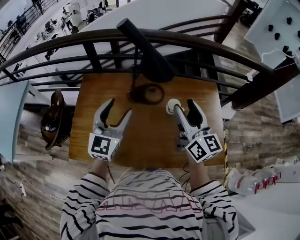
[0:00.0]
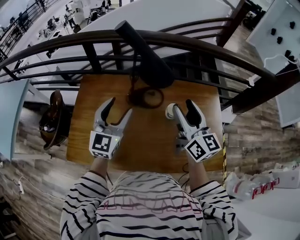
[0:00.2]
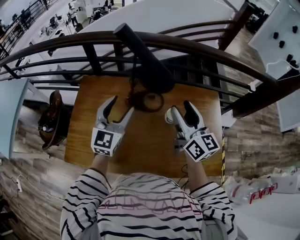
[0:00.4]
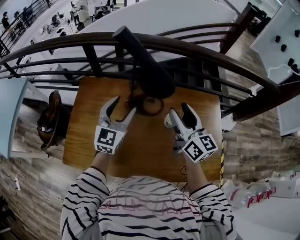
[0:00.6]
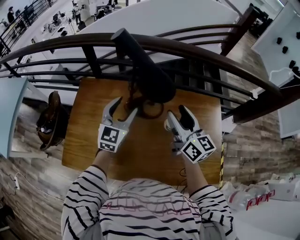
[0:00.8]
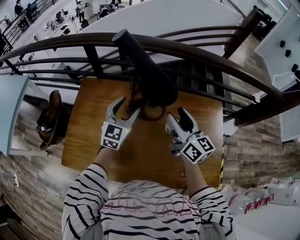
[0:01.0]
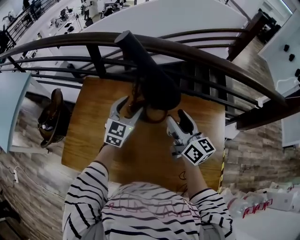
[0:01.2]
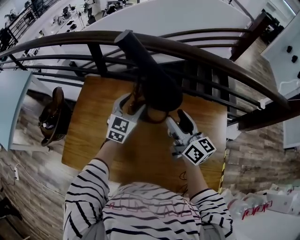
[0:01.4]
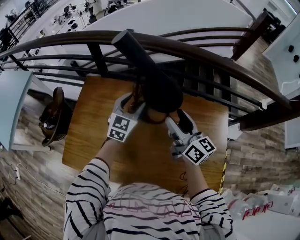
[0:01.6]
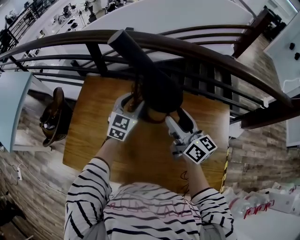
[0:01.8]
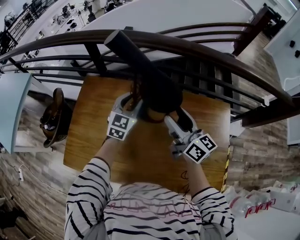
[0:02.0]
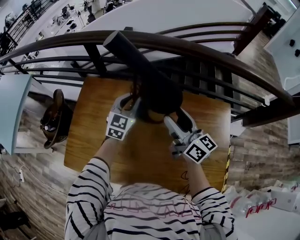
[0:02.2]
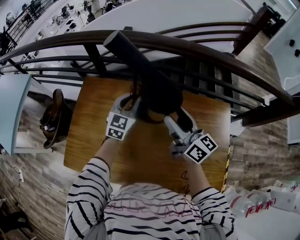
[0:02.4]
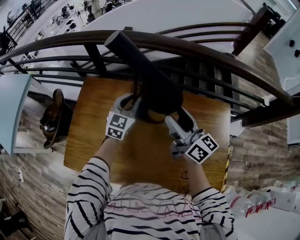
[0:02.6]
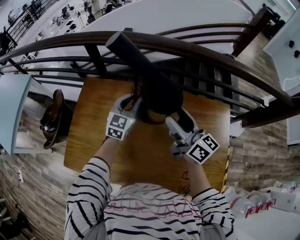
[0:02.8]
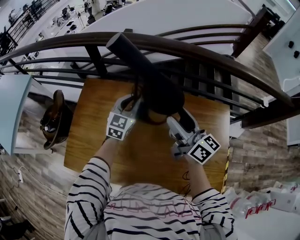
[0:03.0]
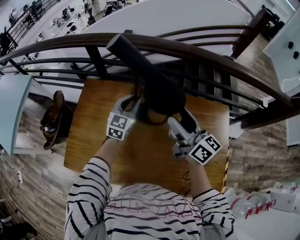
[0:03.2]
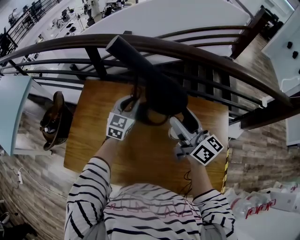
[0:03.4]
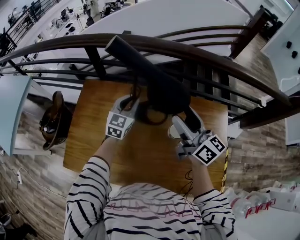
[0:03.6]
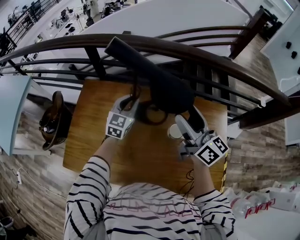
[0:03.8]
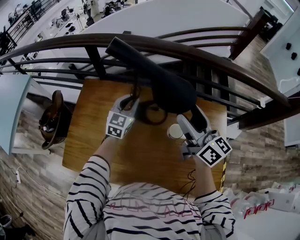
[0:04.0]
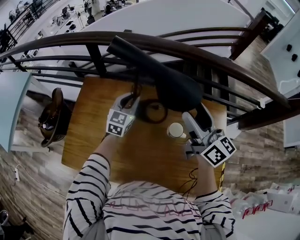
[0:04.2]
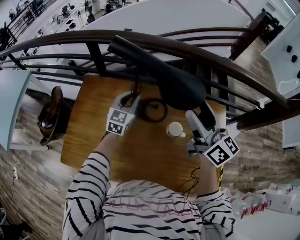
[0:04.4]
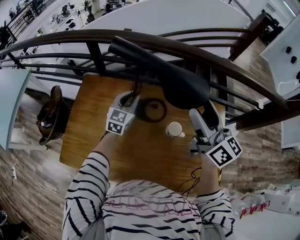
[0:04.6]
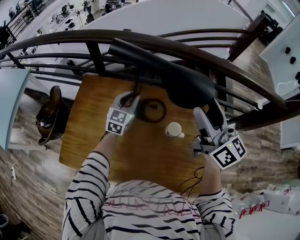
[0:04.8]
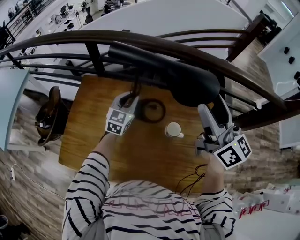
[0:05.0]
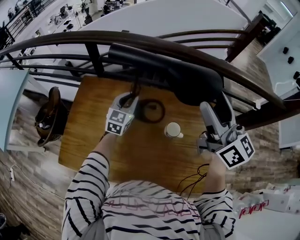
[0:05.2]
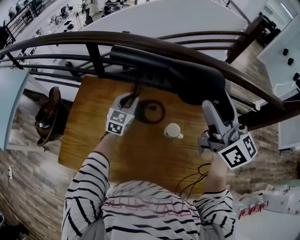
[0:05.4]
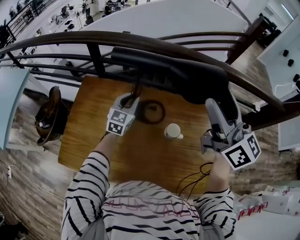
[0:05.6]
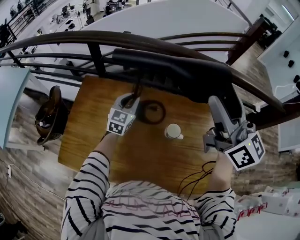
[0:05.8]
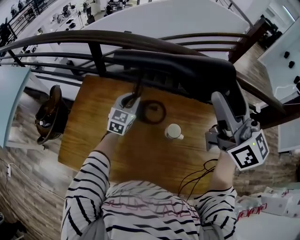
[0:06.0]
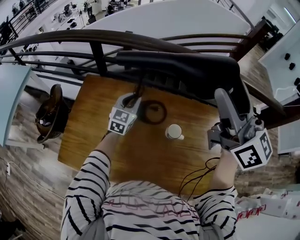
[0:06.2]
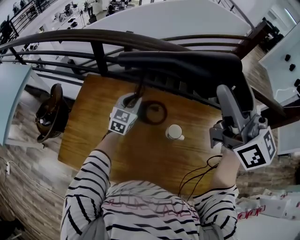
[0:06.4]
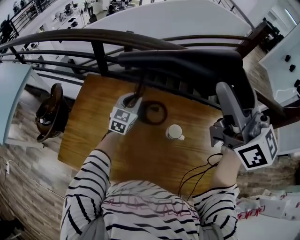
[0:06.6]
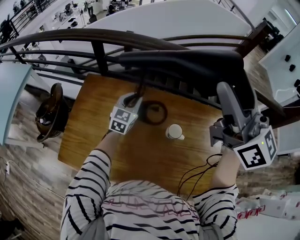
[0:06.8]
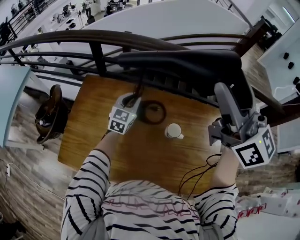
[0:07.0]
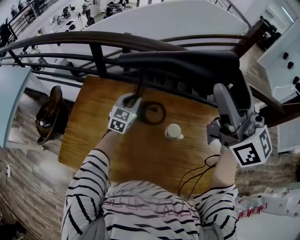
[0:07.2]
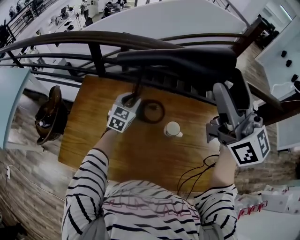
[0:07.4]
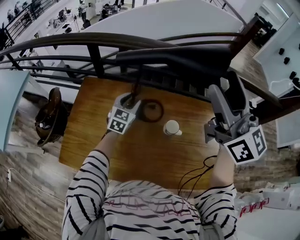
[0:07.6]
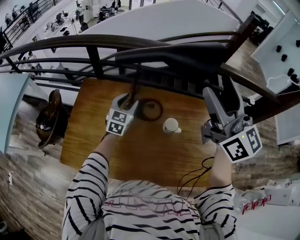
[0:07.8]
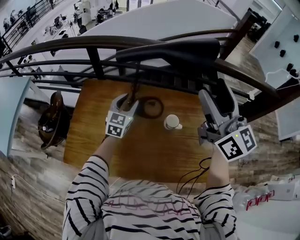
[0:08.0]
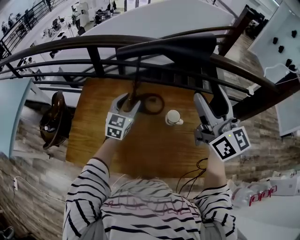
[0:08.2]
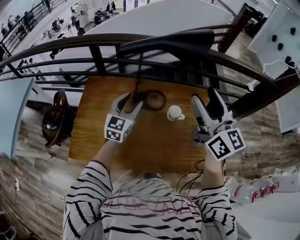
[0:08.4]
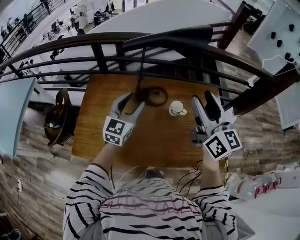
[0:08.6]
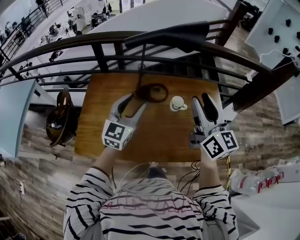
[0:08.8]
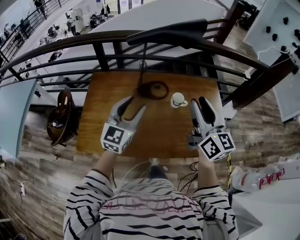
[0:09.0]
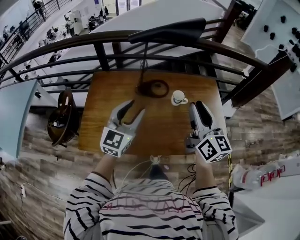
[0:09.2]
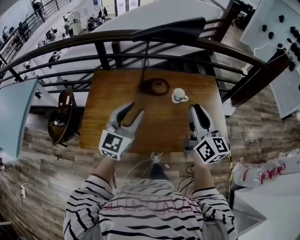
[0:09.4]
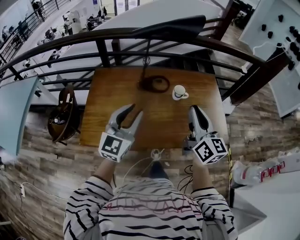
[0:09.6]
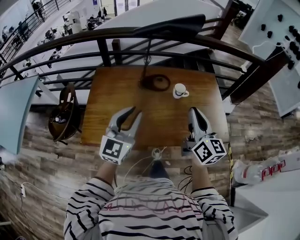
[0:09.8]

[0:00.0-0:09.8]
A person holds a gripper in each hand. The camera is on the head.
0:00.0 to 0:01.4: The grippers both shift forward and downward by roughly 20 cm. The right gripper changes its angle by some 20 degrees.
0:01.4 to 0:02.8: The left gripper closes its fingers.
0:02.8 to 0:04.2: The right gripper heads upward, covering some 5 cm.
0:04.2 to 0:05.6: The right gripper heads upward, covering about 15 cm.
0:05.6 to 0:07.0: The right gripper shifts approximately 10 cm upward.
0:07.0 to 0:08.4: The right gripper is displaced backward and downward by some 15 cm; the left gripper shifts some 20 cm backward and upward, and opens its fingers.
0:08.4 to 0:09.8: The left gripper travels backward by approximately 30 cm, and closes up. The right gripper shifts about 25 cm backward and downward, and closes.

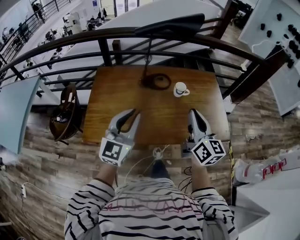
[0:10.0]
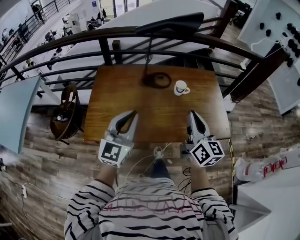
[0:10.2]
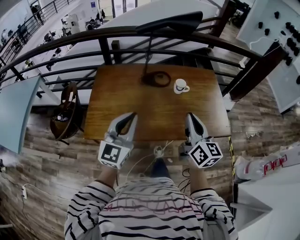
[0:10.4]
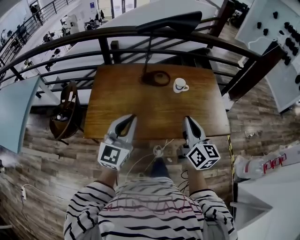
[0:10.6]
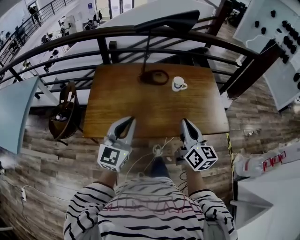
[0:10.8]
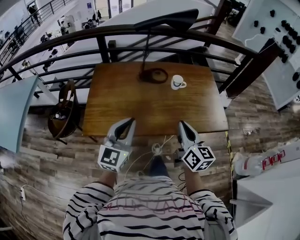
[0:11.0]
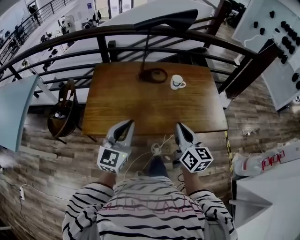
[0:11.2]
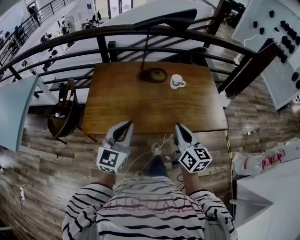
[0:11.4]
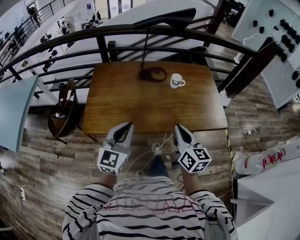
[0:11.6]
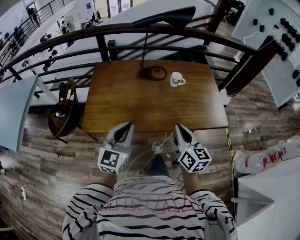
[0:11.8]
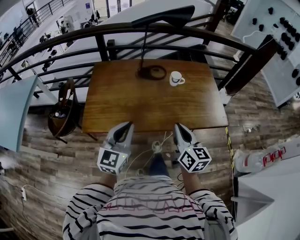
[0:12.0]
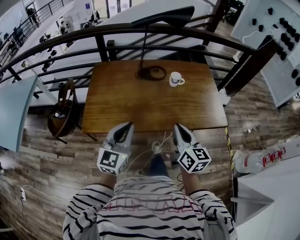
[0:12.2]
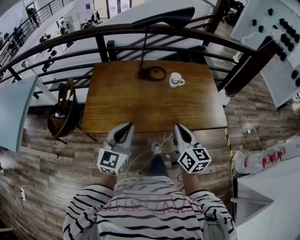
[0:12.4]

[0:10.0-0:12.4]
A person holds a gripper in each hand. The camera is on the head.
0:10.0 to 0:11.2: The left gripper shifts roughly 10 cm backward; the right gripper heads backward and downward, covering approximately 15 cm.
0:11.2 to 0:12.4: The grippers make only small movements.

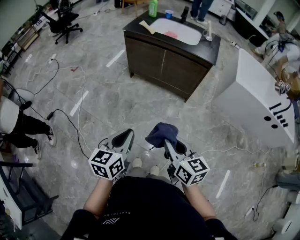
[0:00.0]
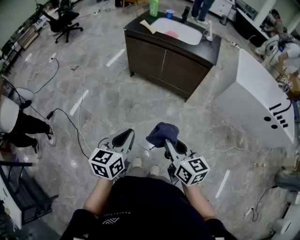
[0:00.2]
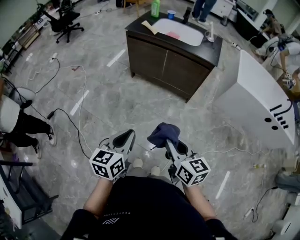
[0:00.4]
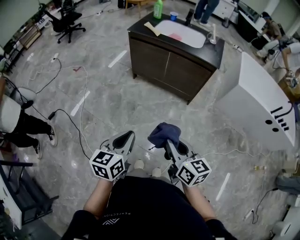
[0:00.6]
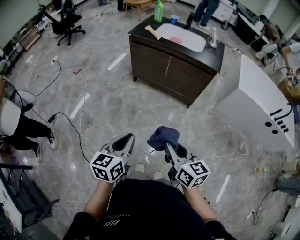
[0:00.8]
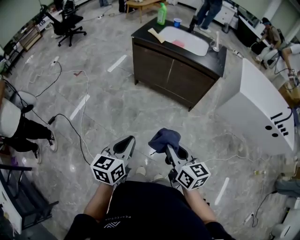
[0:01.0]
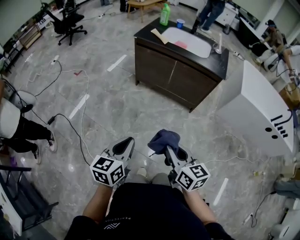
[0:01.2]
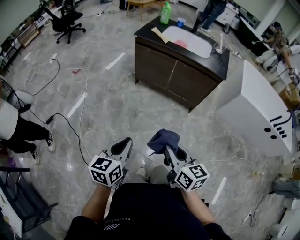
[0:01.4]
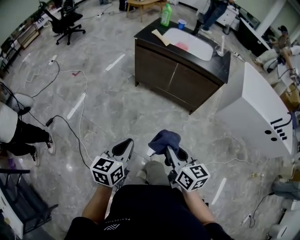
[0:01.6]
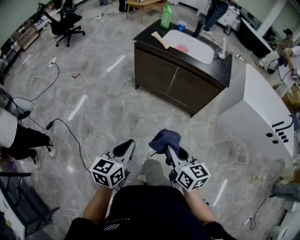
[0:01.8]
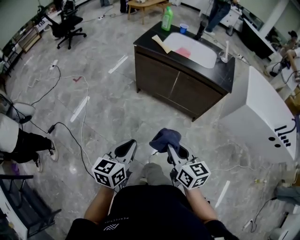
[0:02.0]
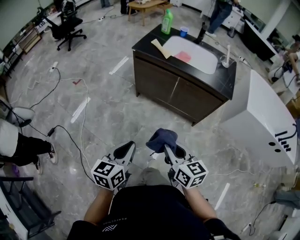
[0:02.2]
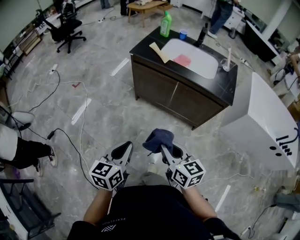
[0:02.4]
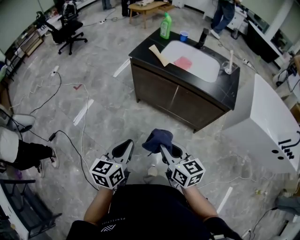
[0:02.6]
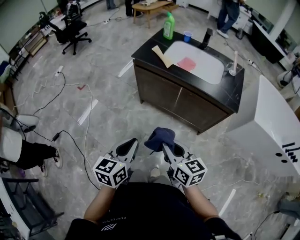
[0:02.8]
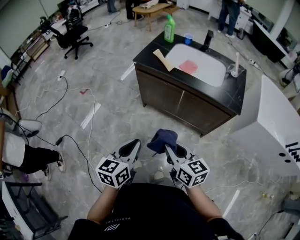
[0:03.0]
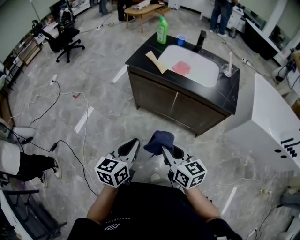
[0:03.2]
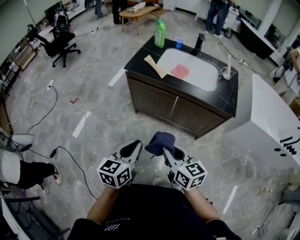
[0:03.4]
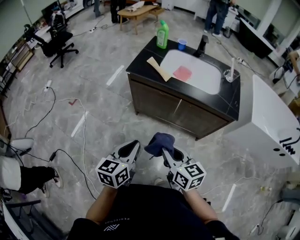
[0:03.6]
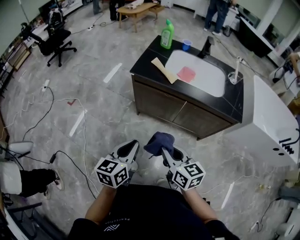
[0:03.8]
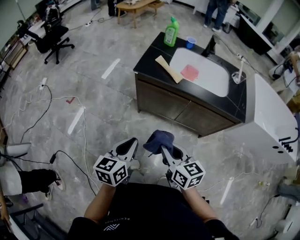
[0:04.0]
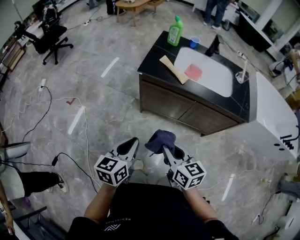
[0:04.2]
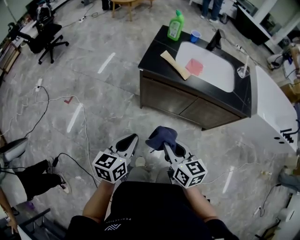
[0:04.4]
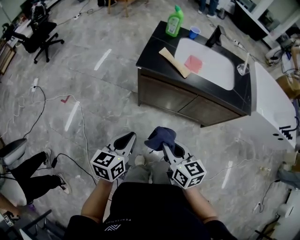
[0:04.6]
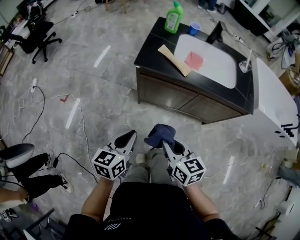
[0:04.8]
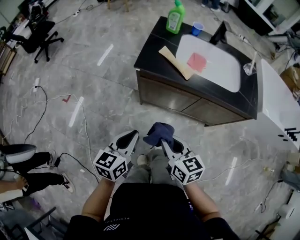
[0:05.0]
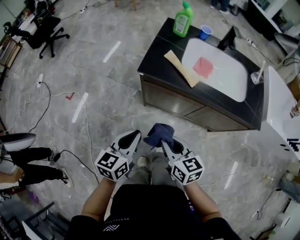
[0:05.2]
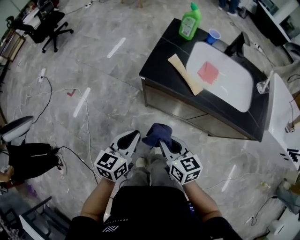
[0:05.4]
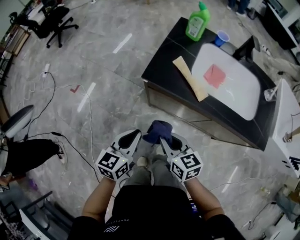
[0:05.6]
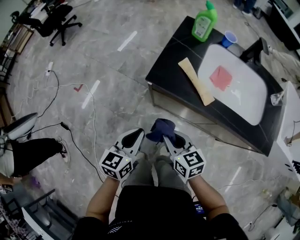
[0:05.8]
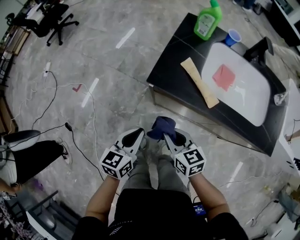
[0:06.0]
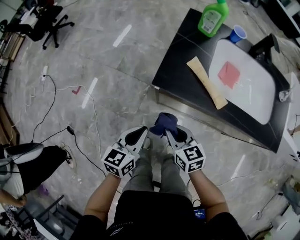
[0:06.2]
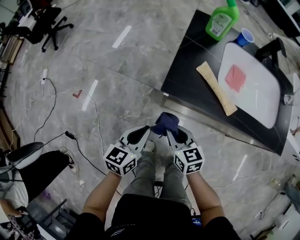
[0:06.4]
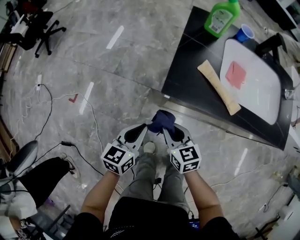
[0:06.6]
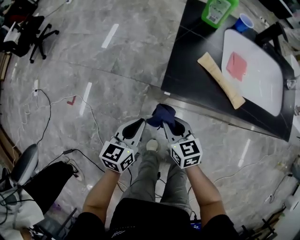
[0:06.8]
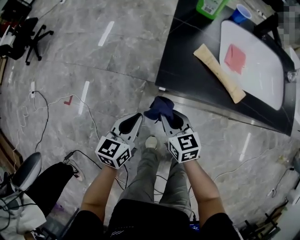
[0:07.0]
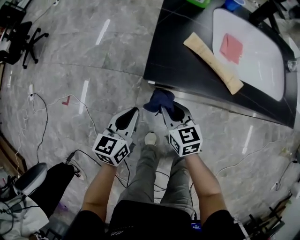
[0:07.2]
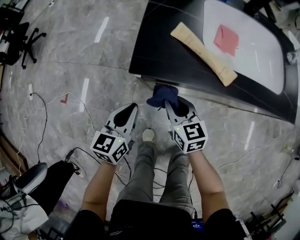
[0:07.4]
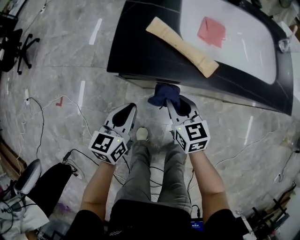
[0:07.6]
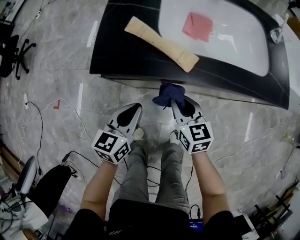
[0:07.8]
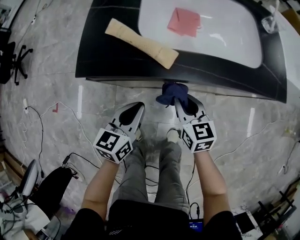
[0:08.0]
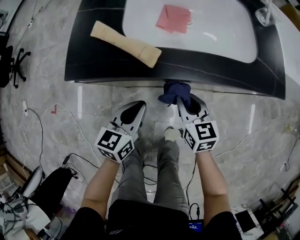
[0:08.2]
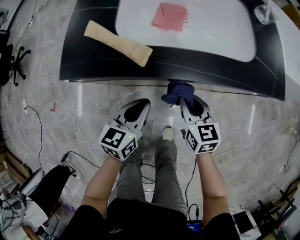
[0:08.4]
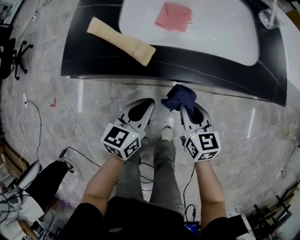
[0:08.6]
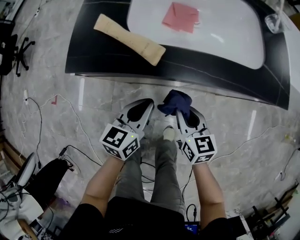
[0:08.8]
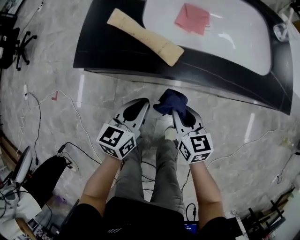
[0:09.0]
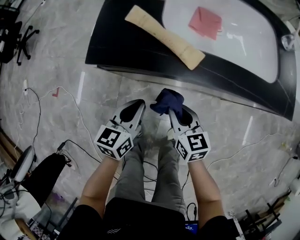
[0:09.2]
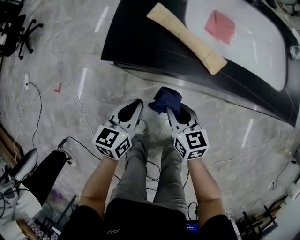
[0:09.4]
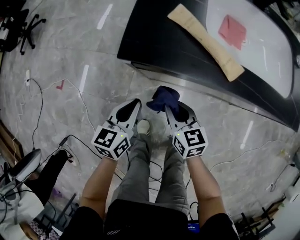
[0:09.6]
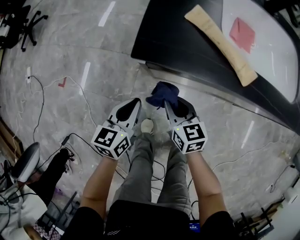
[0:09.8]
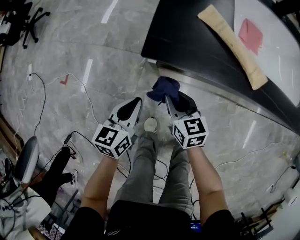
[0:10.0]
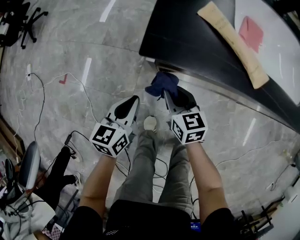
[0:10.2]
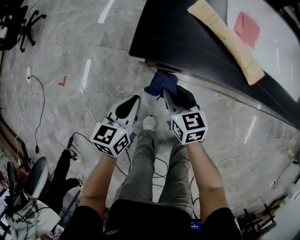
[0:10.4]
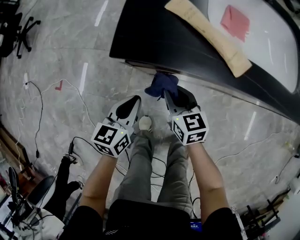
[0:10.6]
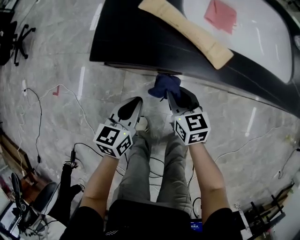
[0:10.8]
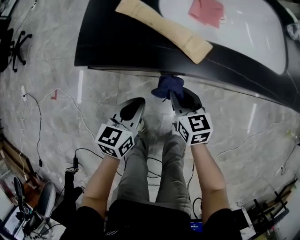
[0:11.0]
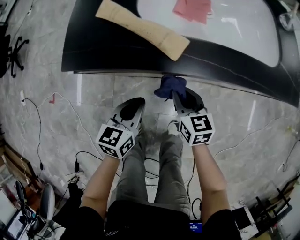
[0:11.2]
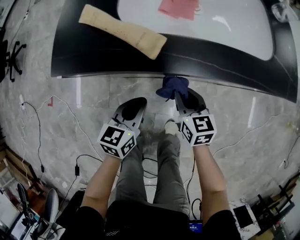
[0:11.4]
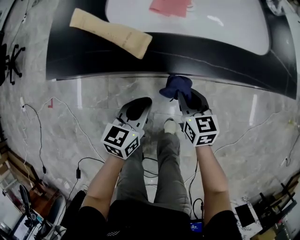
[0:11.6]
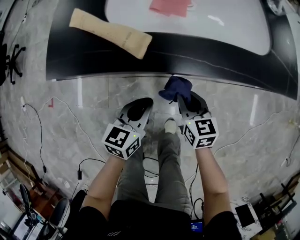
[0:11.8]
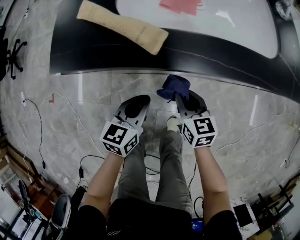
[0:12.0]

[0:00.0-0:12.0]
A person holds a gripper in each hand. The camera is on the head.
0:00.0 to 0:01.6: The grippers both shift to the left and forward by roughly 10 cm.
0:01.6 to 0:03.0: Both grippers travel together forward, about 25 cm.
0:03.0 to 0:04.4: The two grippers go approximately 25 cm to the left and forward.
0:04.4 to 0:06.0: The two grippers go roughly 25 cm forward and downward.
0:06.0 to 0:07.6: The left gripper shifts approximately 10 cm downward and forward, and reaches about 10 cm to the left, then returns; the right gripper is displaced downward, forward and to the right by about 15 cm, and turns by roughly 20 degrees.
0:07.6 to 0:09.0: The two grippers go roughly 15 cm to the right.
0:09.0 to 0:10.4: The grippers both shift to the left by about 20 cm.
0:10.4 to 0:12.0: Both grippers move to the right, approximately 25 cm.
